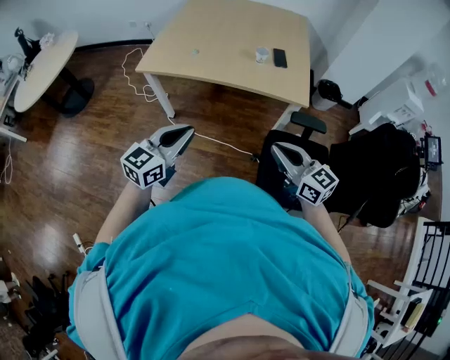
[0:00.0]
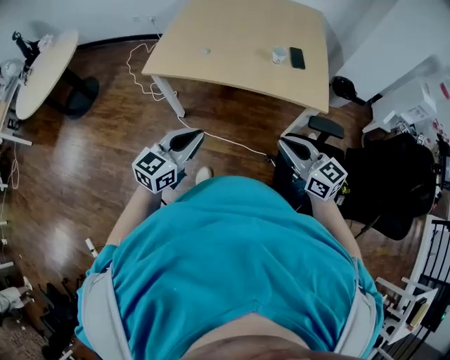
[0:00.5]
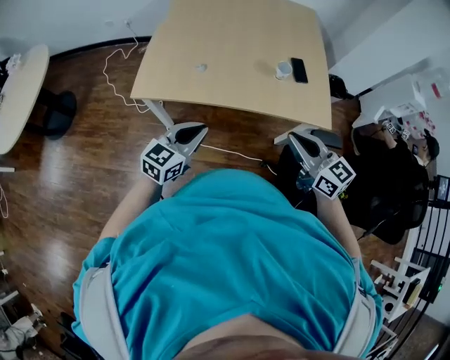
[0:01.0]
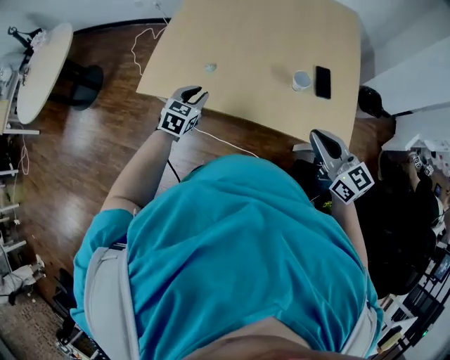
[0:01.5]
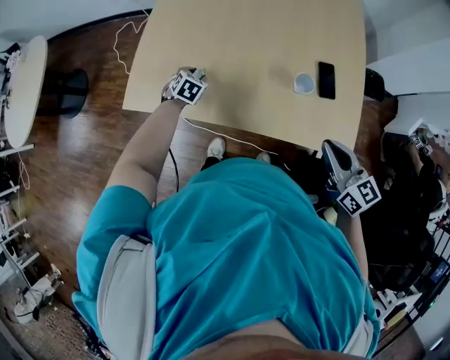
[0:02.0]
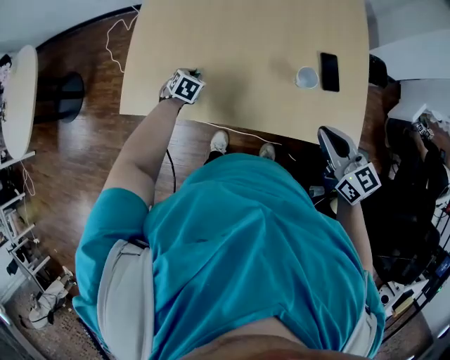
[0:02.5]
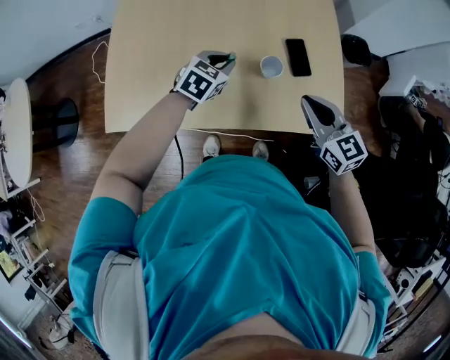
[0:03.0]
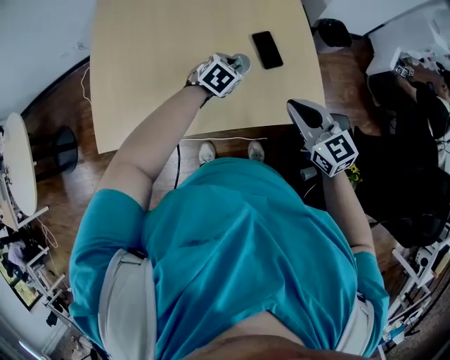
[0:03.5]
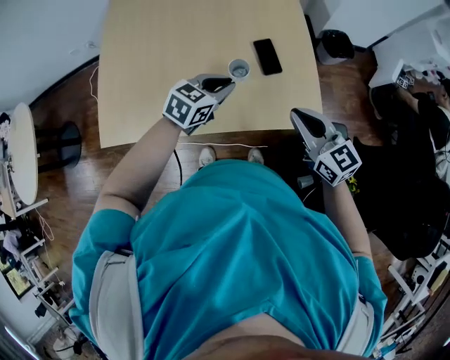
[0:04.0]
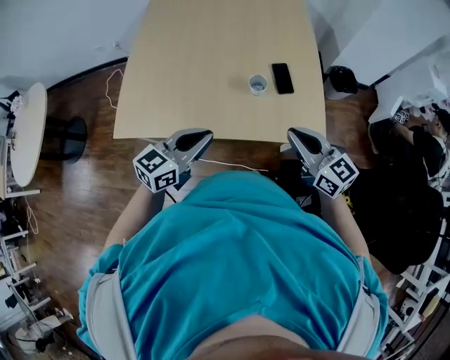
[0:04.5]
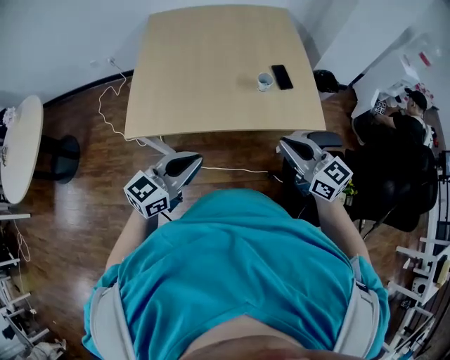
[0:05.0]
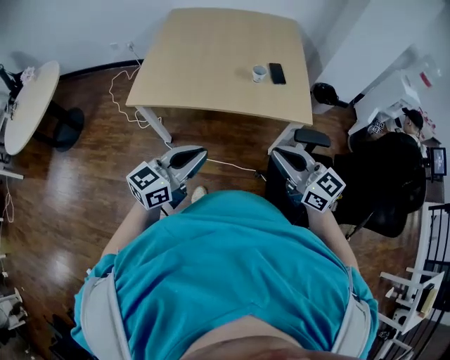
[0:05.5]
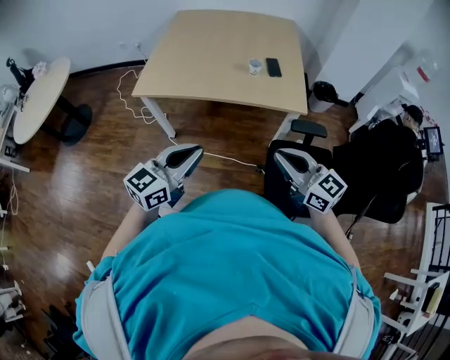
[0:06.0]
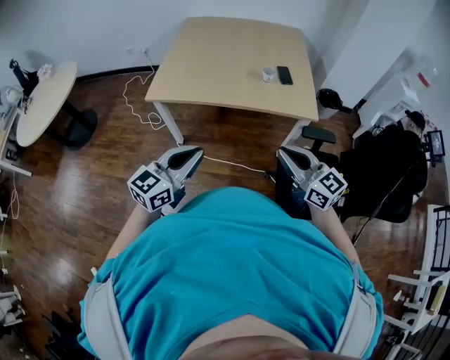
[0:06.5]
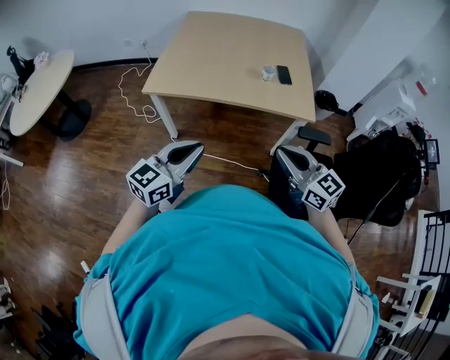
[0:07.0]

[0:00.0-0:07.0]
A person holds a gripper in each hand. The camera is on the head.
0:00.0 to 0:02.0: The pair of grippers is taken forward, roughly 50 cm. The left gripper moves downward, approximately 30 cm, tips its fingers downward by approximately 50 degrees, and opens its fingers.
0:02.0 to 0:03.5: The left gripper ends up some 35 cm from where it was, and swivels about 30 degrees. The right gripper shifts by roughly 10 cm.
0:03.5 to 0:05.0: The right gripper travels backward, to the left and upward by approximately 30 cm, while the left gripper is displaced backward, to the left and upward by some 50 cm, and tilts its fingers approximately 50 degrees upward.
0:05.0 to 0:07.0: The grippers both shift backward by about 25 cm.

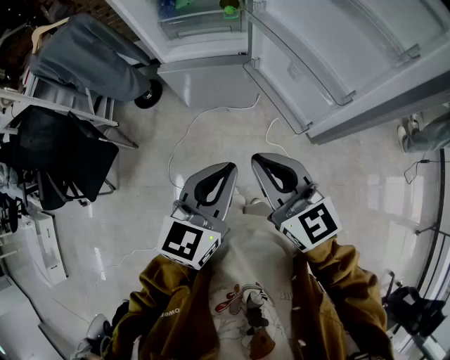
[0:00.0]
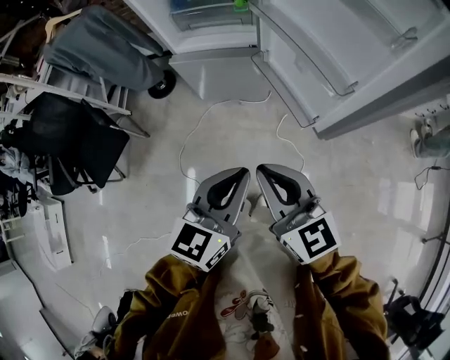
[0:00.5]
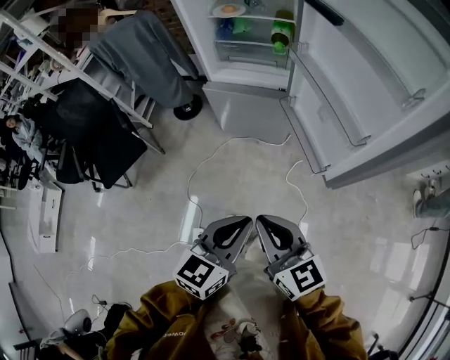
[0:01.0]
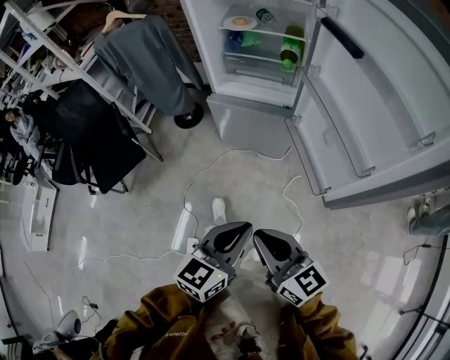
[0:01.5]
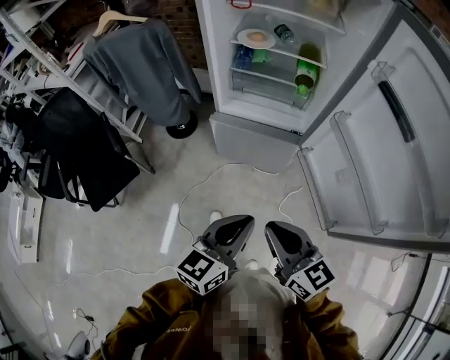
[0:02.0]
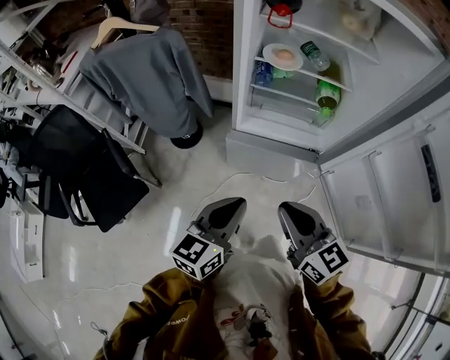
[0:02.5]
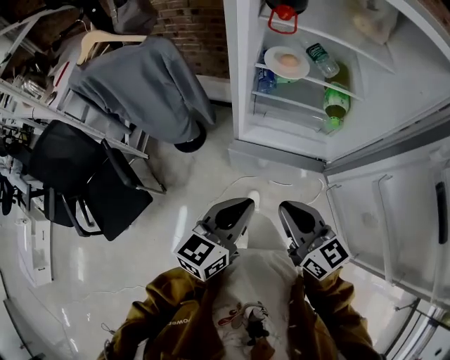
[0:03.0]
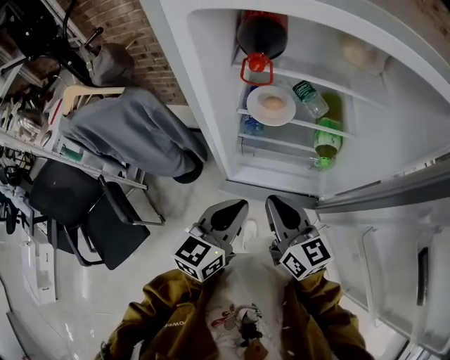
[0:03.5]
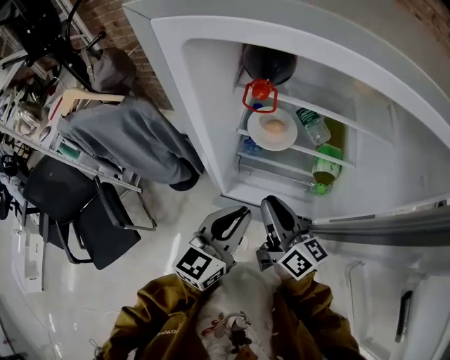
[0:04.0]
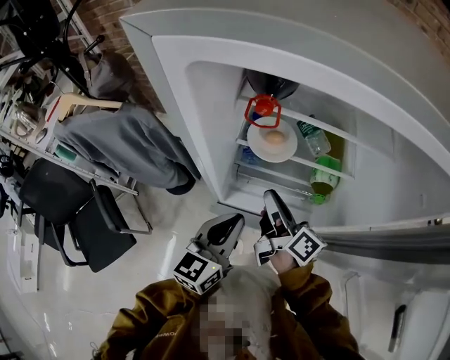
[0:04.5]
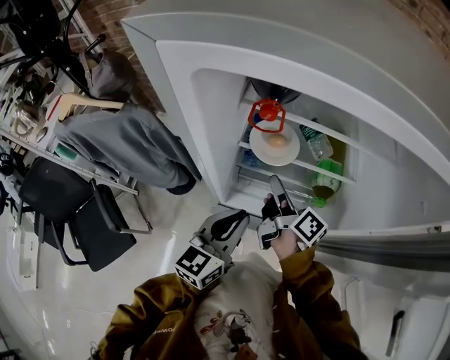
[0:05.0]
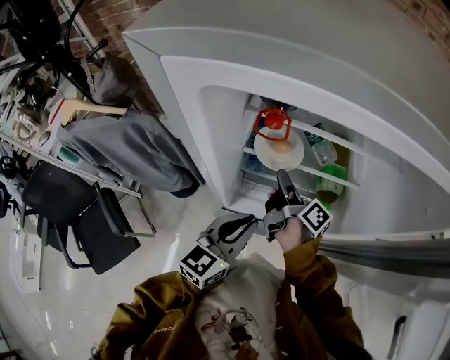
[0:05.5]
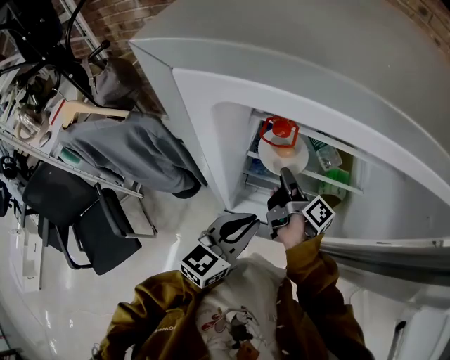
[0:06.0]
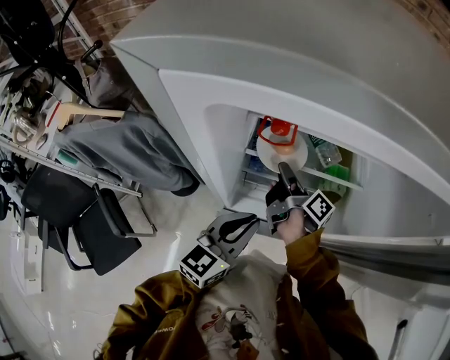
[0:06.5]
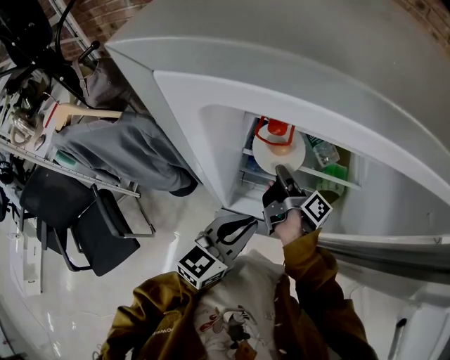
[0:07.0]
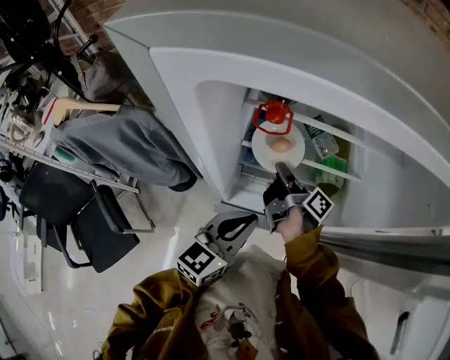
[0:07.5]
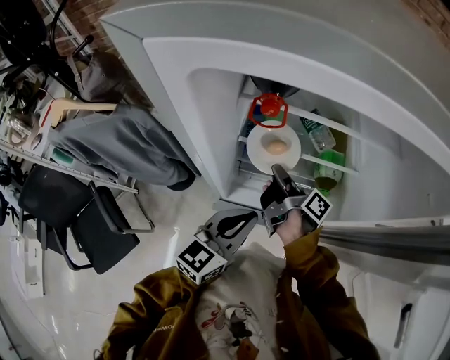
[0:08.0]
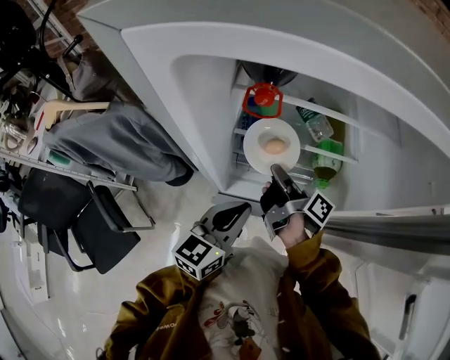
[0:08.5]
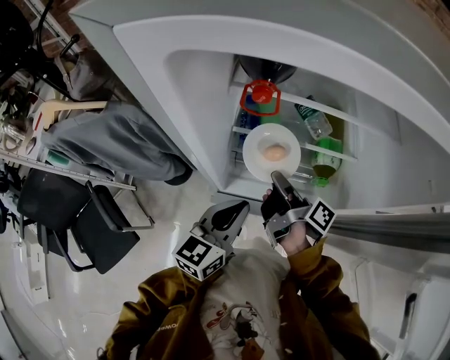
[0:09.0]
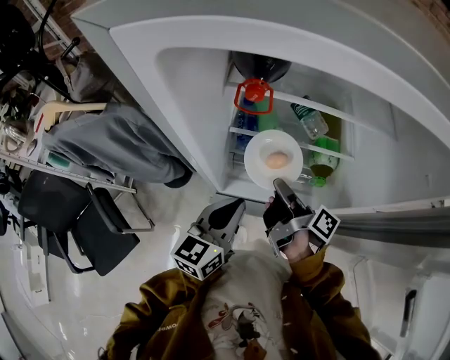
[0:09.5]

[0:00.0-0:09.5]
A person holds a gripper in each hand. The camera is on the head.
0:00.0 to 0:02.0: Both grippers travel together forward and to the left, about 15 cm.
0:02.0 to 0:04.0: The two grippers travel together, forward, roughly 40 cm. The right gripper turns by some 30 degrees.
0:04.0 to 0:05.5: The right gripper is displaced forward and downward by approximately 15 cm, and rotates roughly 40 degrees.
0:05.5 to 0:07.5: The right gripper closes up.
0:07.5 to 0:09.5: The right gripper heads backward, covering approximately 10 cm.

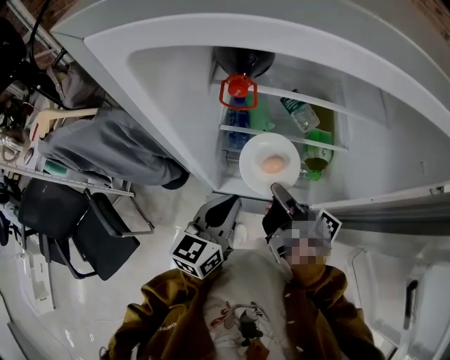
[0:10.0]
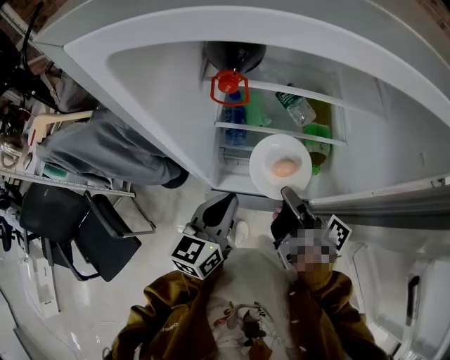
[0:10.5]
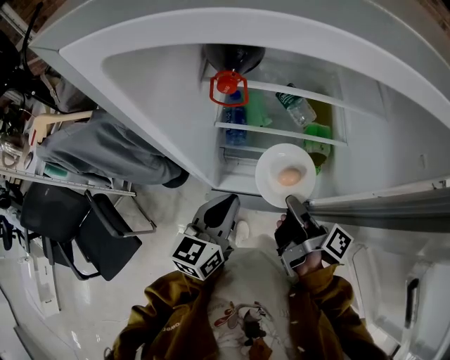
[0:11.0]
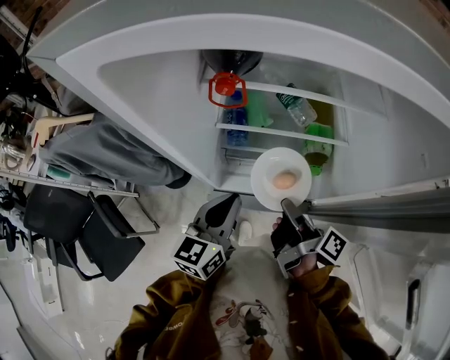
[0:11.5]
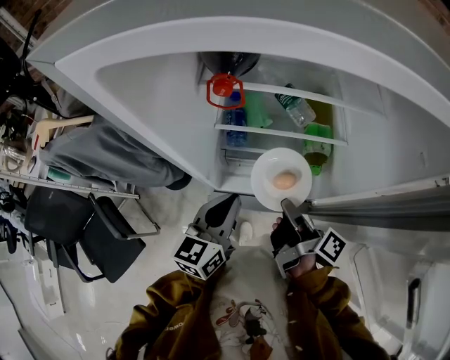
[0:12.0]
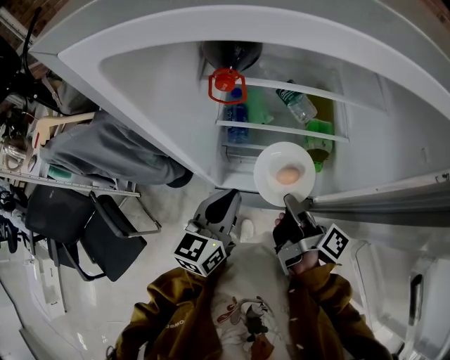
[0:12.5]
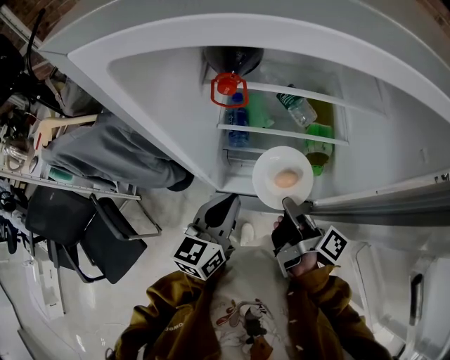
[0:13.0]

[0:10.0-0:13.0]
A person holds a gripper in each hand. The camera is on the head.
0:10.0 to 0:11.5: The right gripper shifts by some 5 cm.
0:11.5 to 0:13.0: Both grippers stay put.

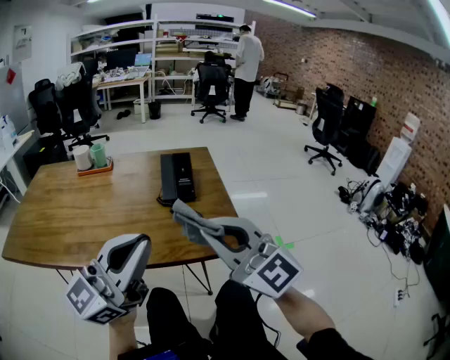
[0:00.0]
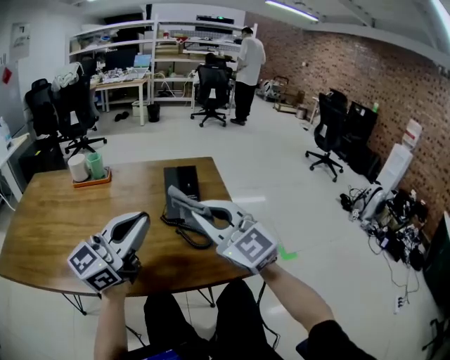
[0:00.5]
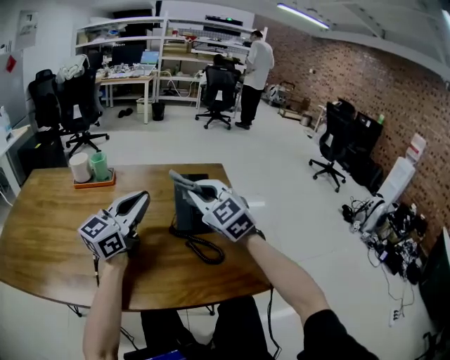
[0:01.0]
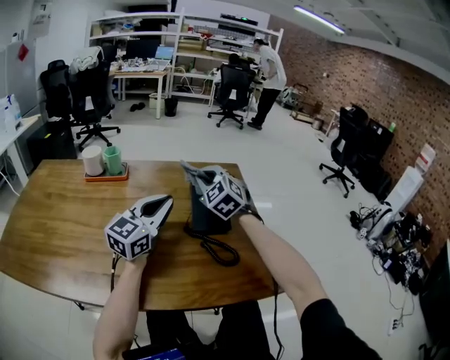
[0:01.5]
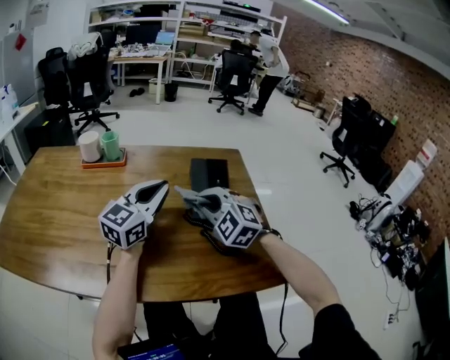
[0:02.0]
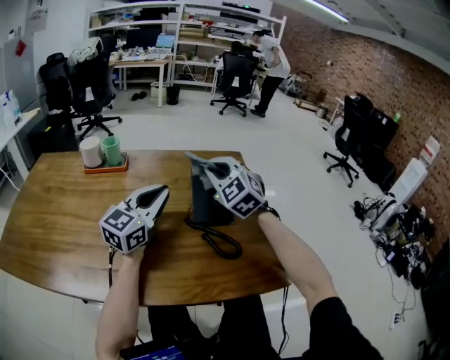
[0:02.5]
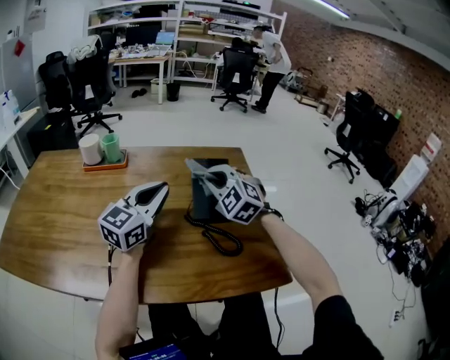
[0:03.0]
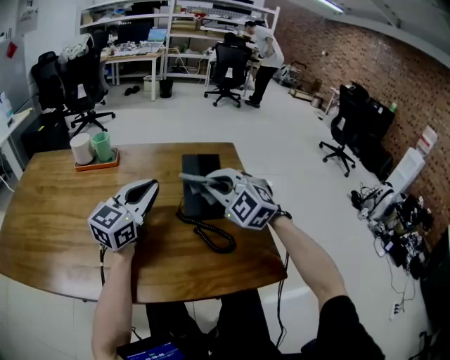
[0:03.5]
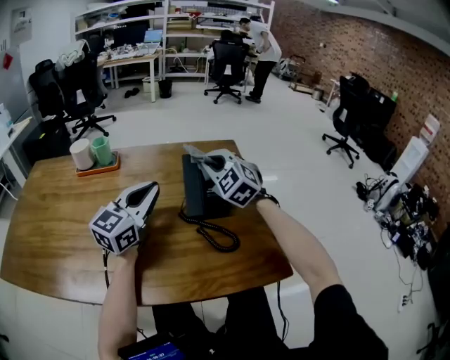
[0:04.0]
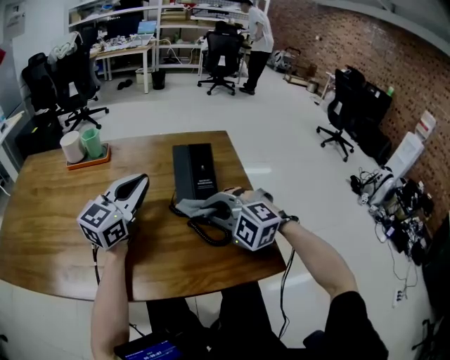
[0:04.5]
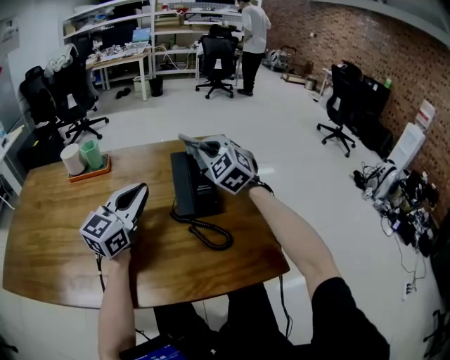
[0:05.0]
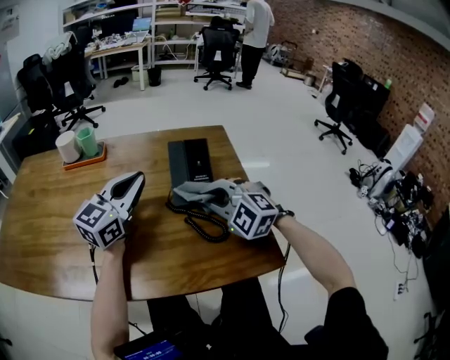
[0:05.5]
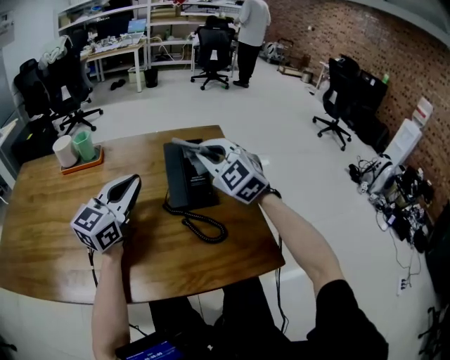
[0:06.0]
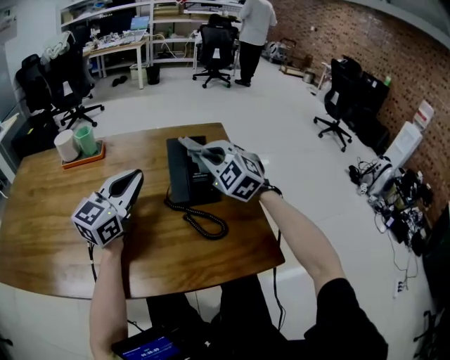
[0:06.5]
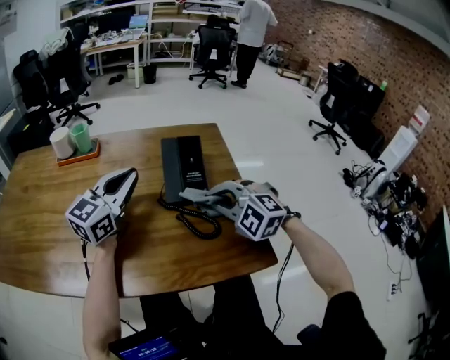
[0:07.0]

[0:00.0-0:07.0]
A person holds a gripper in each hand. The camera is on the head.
0:00.0 to 0:02.0: The left gripper is displaced forward by some 35 cm, and turns by approximately 30 degrees. Meanwhile the right gripper heads forward and downward, covering about 35 cm, and points its fingers approximately 30 degrees further downward.
0:02.0 to 0:03.5: The right gripper goes forward and returns, some 10 cm each way.
0:03.5 to 0:05.0: The right gripper moves forward and backward over approximately 20 cm, changing direction 2 times.
0:05.0 to 0:07.0: The right gripper goes forward and backward, about 20 cm each way, reversing 2 times, and rotates roughly 30 degrees.
